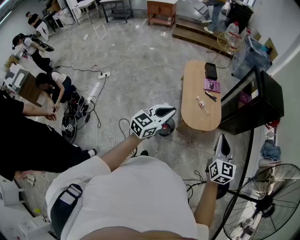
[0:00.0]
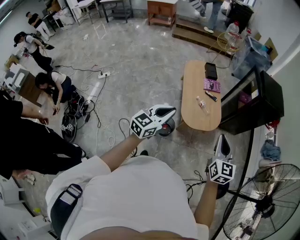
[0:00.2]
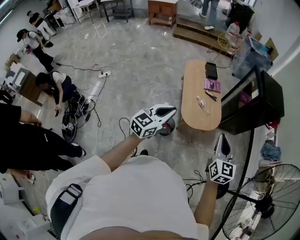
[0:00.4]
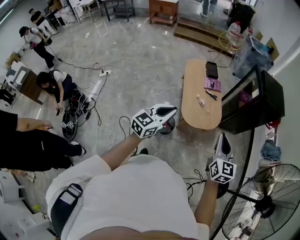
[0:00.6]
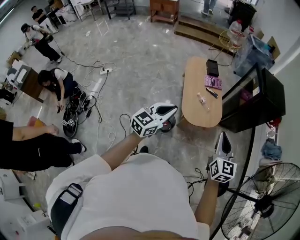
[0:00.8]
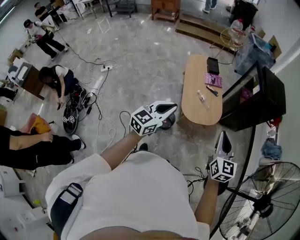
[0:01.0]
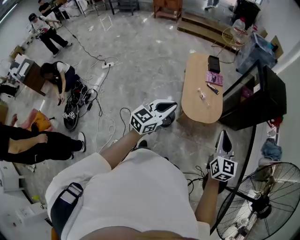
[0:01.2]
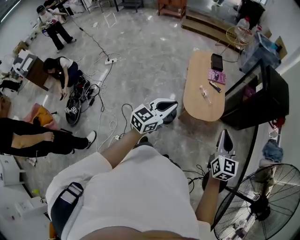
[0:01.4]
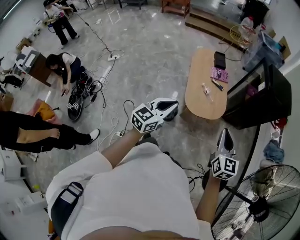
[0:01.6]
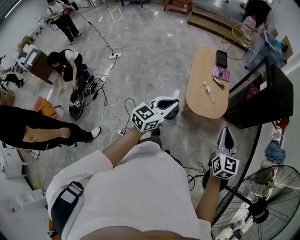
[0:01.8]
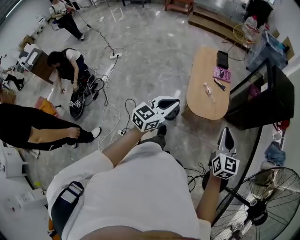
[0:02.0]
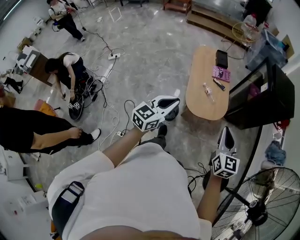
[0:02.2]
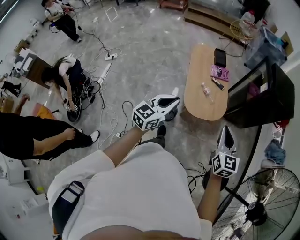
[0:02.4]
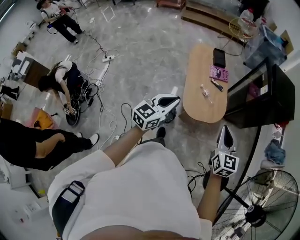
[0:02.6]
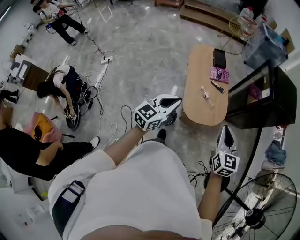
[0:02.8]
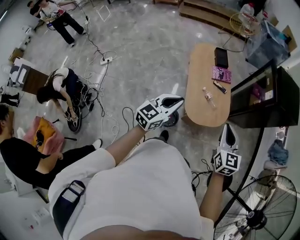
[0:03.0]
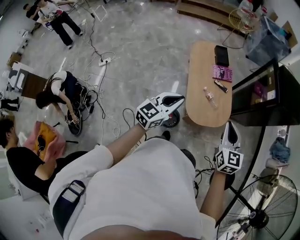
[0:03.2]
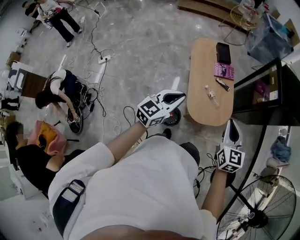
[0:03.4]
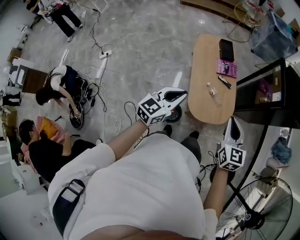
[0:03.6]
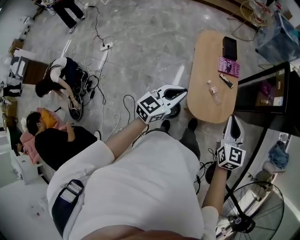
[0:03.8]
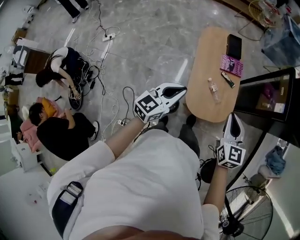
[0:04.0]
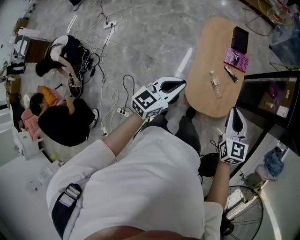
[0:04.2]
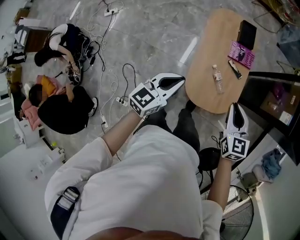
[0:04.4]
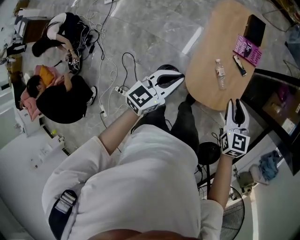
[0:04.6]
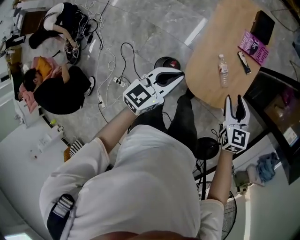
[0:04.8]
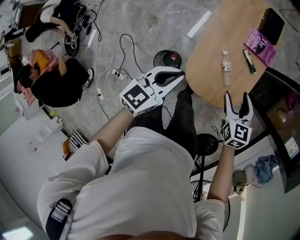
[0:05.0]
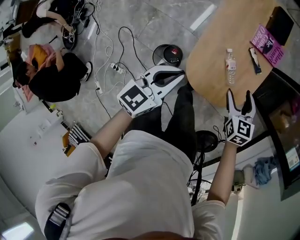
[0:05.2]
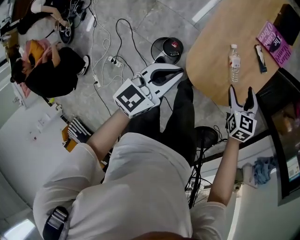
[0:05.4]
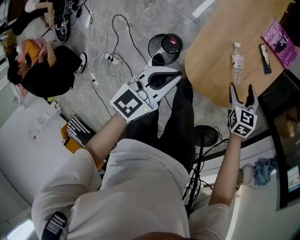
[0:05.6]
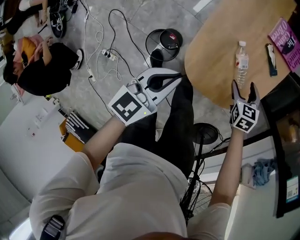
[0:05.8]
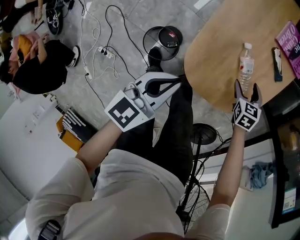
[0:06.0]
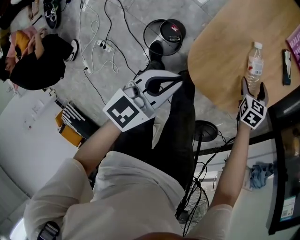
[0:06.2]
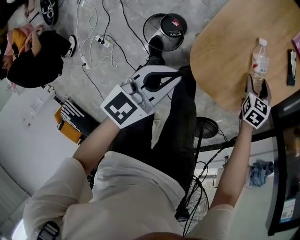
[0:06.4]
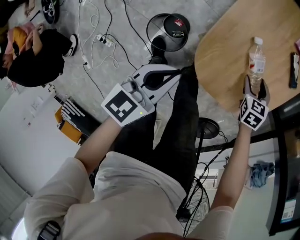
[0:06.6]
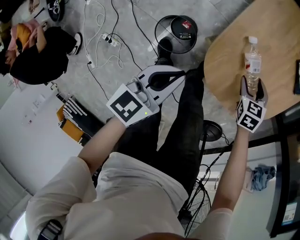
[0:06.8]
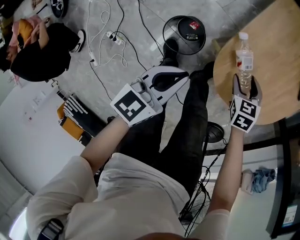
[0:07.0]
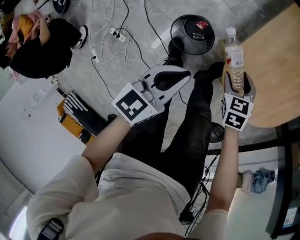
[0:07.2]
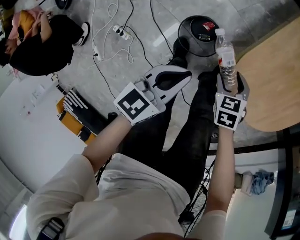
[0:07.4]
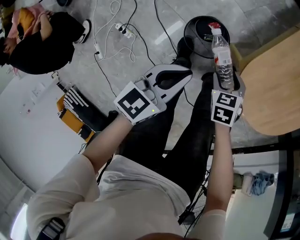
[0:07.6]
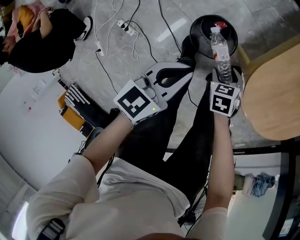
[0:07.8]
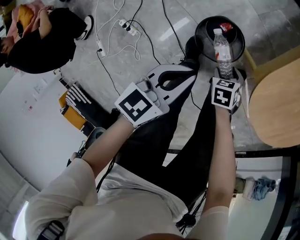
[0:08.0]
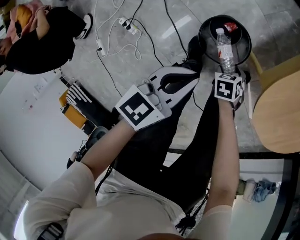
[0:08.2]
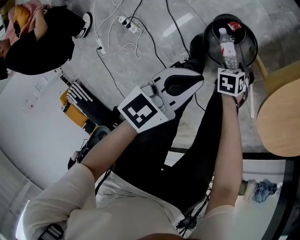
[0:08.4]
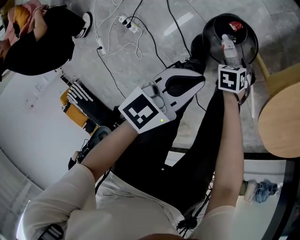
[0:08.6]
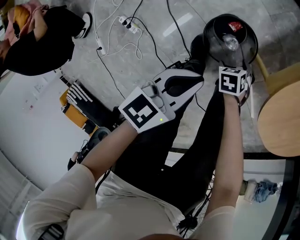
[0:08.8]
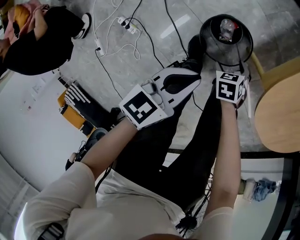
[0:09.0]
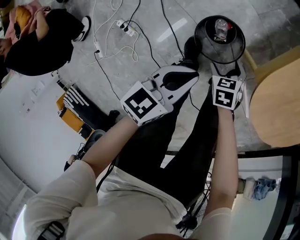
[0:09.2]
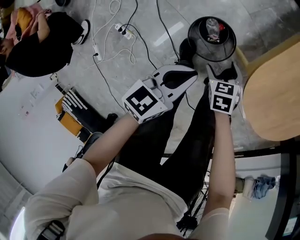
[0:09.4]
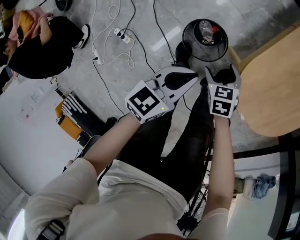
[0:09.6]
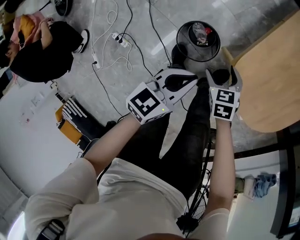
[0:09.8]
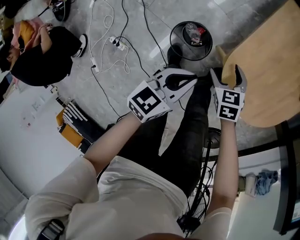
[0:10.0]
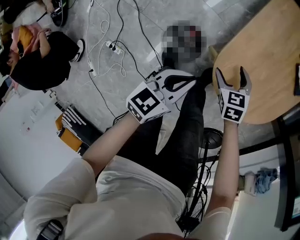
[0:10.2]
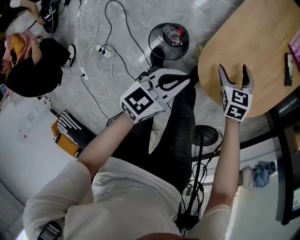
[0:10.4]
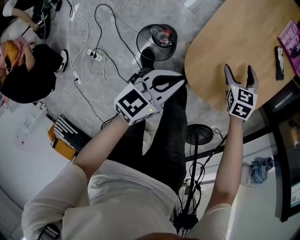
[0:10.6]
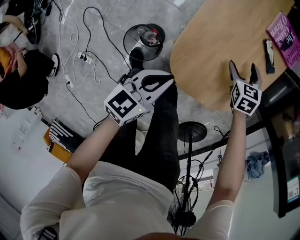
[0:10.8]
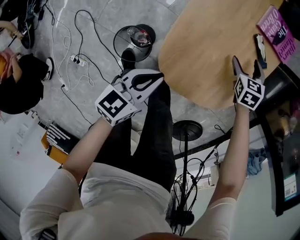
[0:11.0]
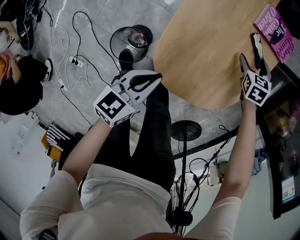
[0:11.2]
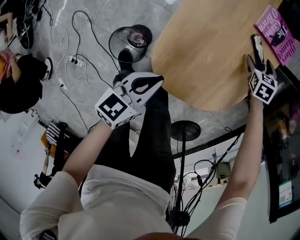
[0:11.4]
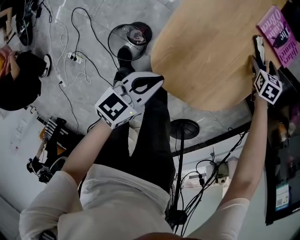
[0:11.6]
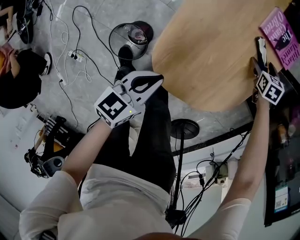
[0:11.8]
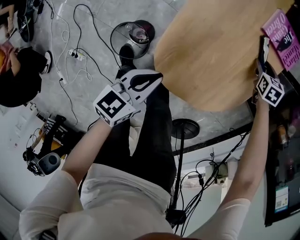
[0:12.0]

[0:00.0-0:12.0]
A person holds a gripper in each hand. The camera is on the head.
0:00.0 to 0:01.6: The two grippers go about 10 cm to the right.
0:01.6 to 0:03.0: The right gripper is displaced forward and to the left by about 20 cm. Meanwhile the left gripper goes about 20 cm forward.
0:03.0 to 0:04.4: Both grippers move forward and downward, roughly 25 cm. The right gripper rotates some 20 degrees.
0:04.4 to 0:06.0: The right gripper moves downward, some 50 cm, tilts its fingers approximately 40 degrees downward, and opens. Meanwhile the left gripper goes some 35 cm downward, and turns by approximately 20 degrees.
0:06.0 to 0:07.6: The right gripper changes place by approximately 35 cm, and swivels some 20 degrees. The left gripper ends up some 25 cm from where it was.
0:07.6 to 0:09.0: The right gripper heads downward, covering about 15 cm; the left gripper goes approximately 10 cm downward.
0:09.0 to 0:10.4: The left gripper changes place by about 20 cm; the right gripper changes place by roughly 35 cm, and swivels some 30 degrees.
0:10.4 to 0:12.0: The left gripper heads to the right, covering roughly 5 cm. Meanwhile the right gripper shifts some 35 cm to the right and forward, and closes its fingers.

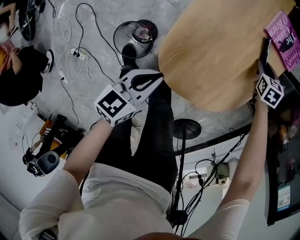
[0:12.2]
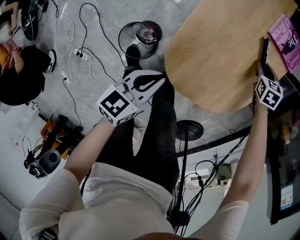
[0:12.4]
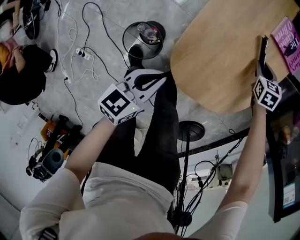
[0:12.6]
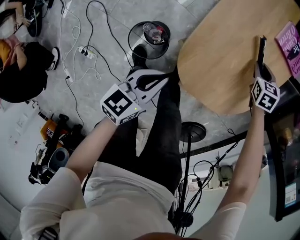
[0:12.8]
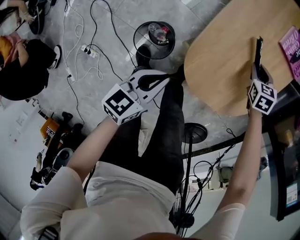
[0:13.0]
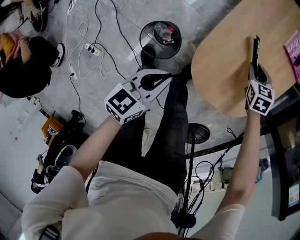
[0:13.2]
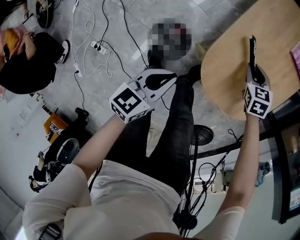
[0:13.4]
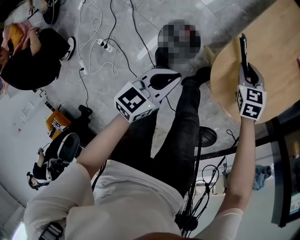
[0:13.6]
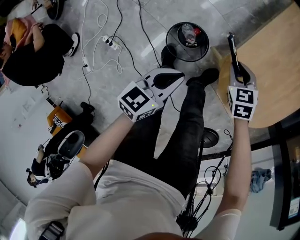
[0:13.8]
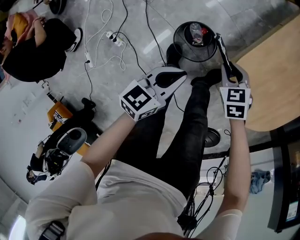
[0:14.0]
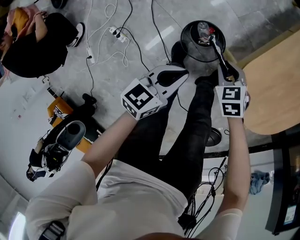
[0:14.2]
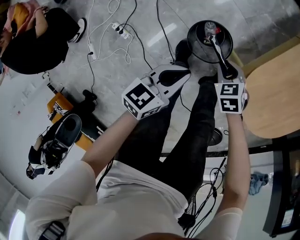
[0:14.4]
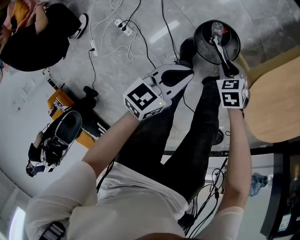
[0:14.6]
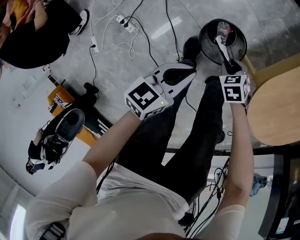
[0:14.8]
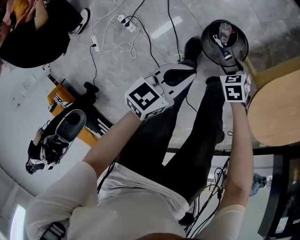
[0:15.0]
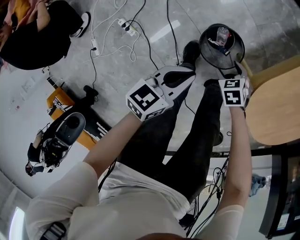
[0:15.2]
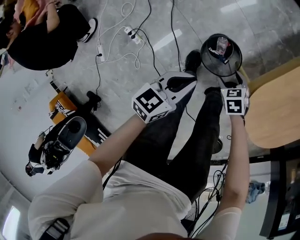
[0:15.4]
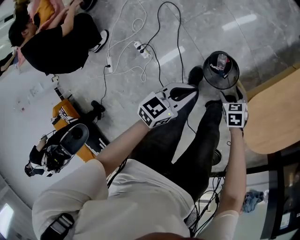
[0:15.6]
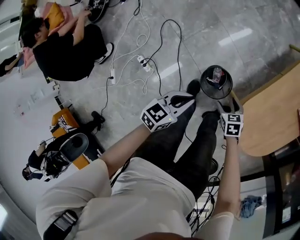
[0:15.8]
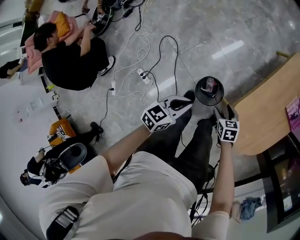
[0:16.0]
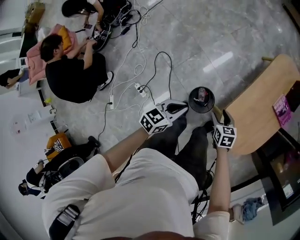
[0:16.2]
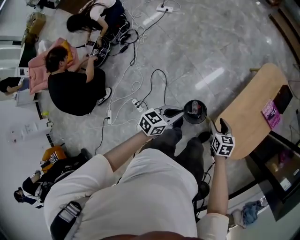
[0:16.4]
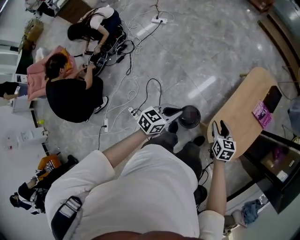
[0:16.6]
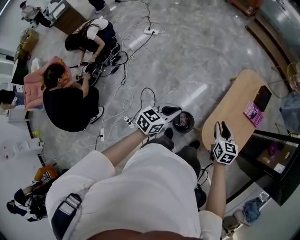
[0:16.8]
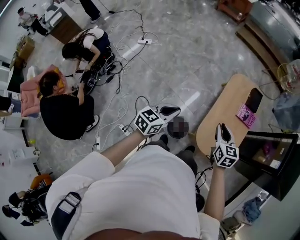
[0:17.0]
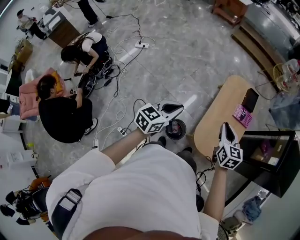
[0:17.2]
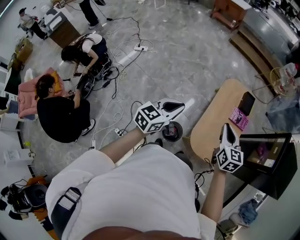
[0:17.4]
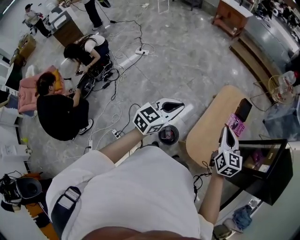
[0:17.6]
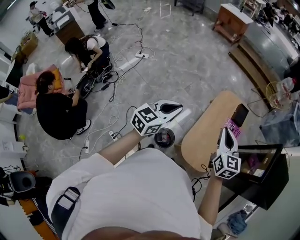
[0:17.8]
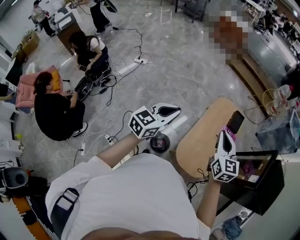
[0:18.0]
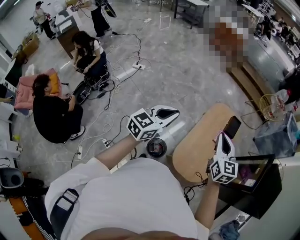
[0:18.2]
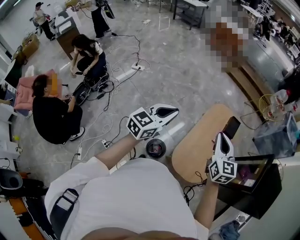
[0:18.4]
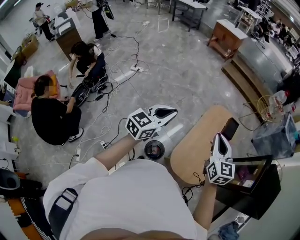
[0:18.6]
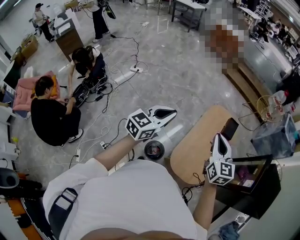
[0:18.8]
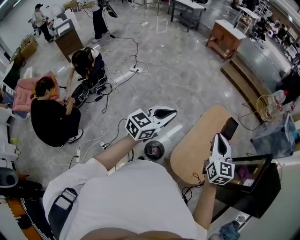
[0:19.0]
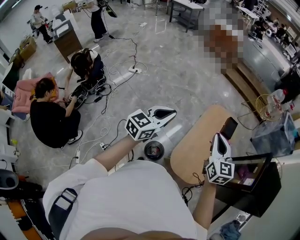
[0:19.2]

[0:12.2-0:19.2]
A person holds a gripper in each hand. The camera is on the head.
0:12.2 to 0:13.6: The right gripper goes roughly 35 cm to the left and backward, and rotates some 20 degrees. Meanwhile the left gripper is displaced to the left and backward by about 15 cm.
0:13.6 to 0:15.0: The right gripper moves roughly 30 cm, swivels roughly 30 degrees, and opens its fingers, while the left gripper shifts by approximately 15 cm.
0:15.0 to 0:16.4: The grippers both shift upward by approximately 40 cm. The right gripper turns by about 40 degrees.
0:16.4 to 0:17.8: Both grippers travel together upward, some 35 cm. The right gripper tips its fingers upward by about 30 degrees, and closes. The left gripper swivels roughly 30 degrees.
0:17.8 to 0:19.2: The grippers make only small movements.

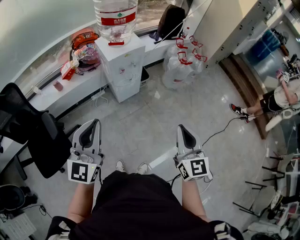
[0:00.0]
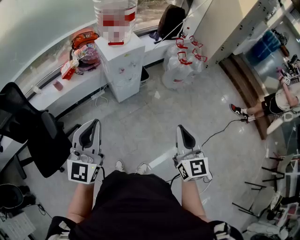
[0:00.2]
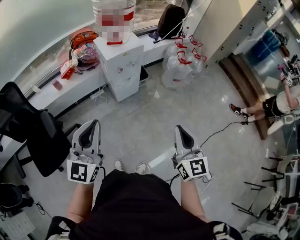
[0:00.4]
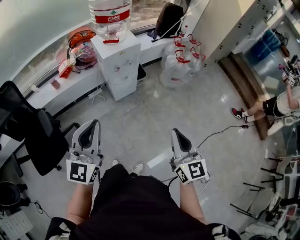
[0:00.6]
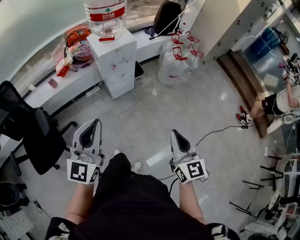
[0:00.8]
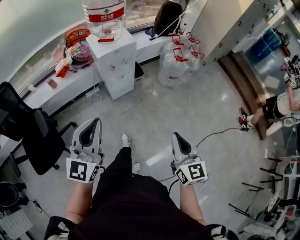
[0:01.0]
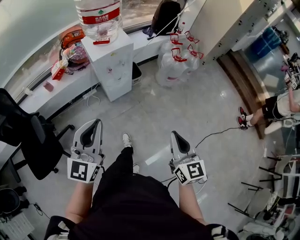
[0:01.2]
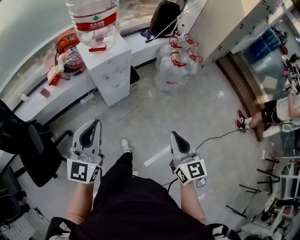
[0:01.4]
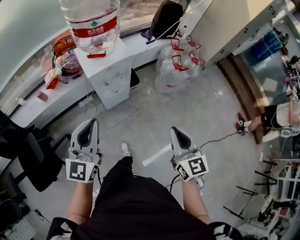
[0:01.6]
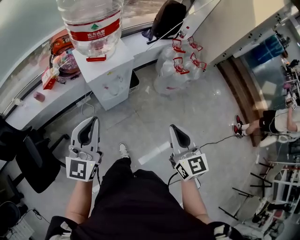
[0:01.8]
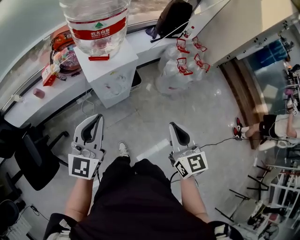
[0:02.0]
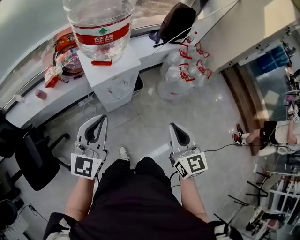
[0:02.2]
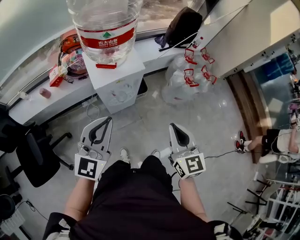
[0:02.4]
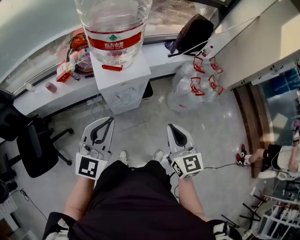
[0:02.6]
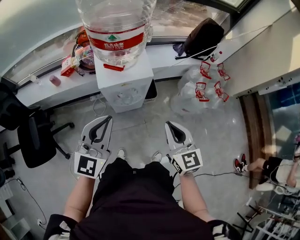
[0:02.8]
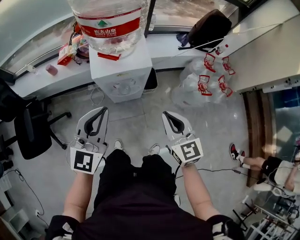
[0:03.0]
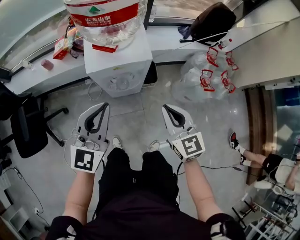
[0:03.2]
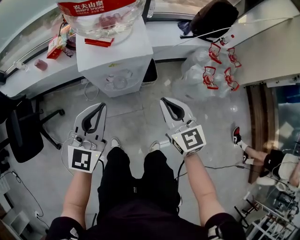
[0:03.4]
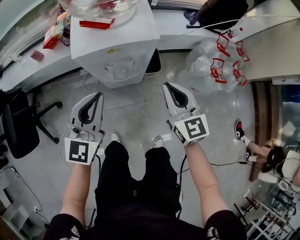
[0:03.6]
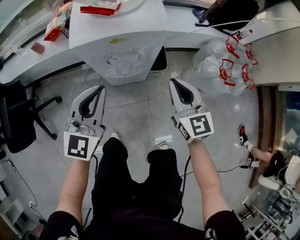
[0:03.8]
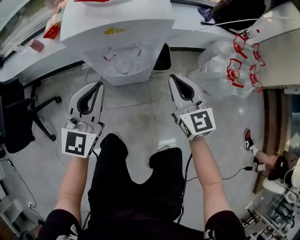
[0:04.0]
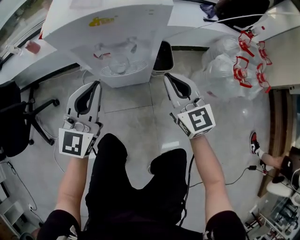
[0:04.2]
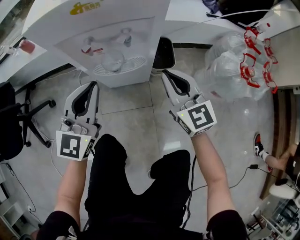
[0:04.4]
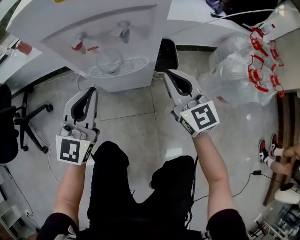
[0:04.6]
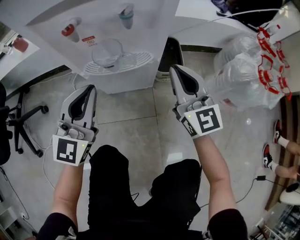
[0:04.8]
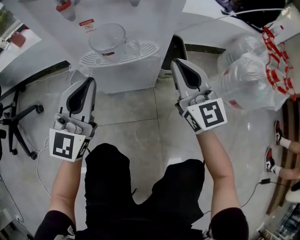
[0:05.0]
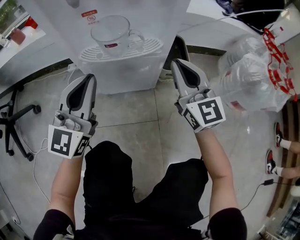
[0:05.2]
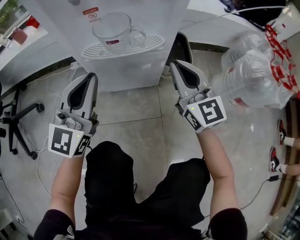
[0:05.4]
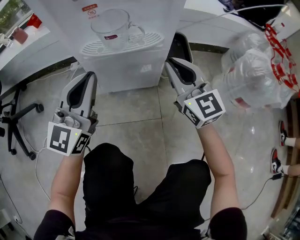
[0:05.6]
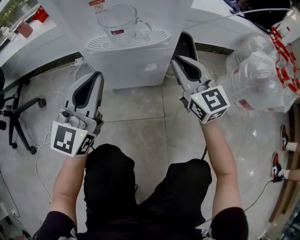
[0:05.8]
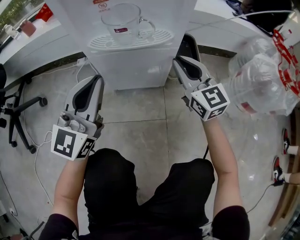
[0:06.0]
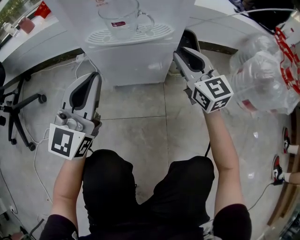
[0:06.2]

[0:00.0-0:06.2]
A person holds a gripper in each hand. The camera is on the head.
0:00.0 to 0:01.6: The two grippers go about 20 cm forward.
0:01.6 to 0:03.2: The left gripper shifts some 20 cm forward, downward and to the right. Meanwhile the right gripper is displaced forward by about 25 cm, and turns by roughly 30 degrees.
0:03.2 to 0:04.6: Both grippers move downward, about 35 cm.
0:04.6 to 0:06.2: The two grippers go about 15 cm downward.
